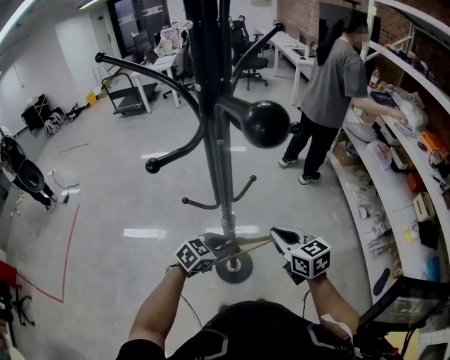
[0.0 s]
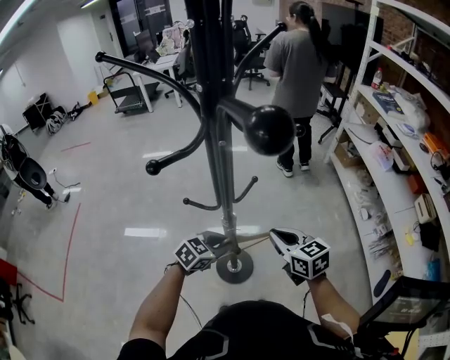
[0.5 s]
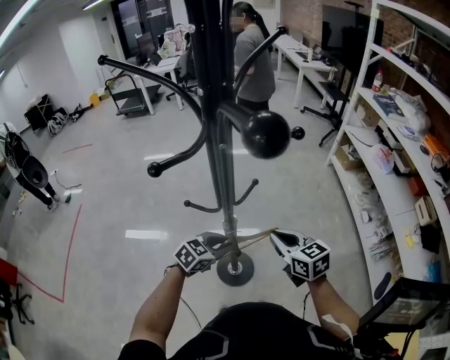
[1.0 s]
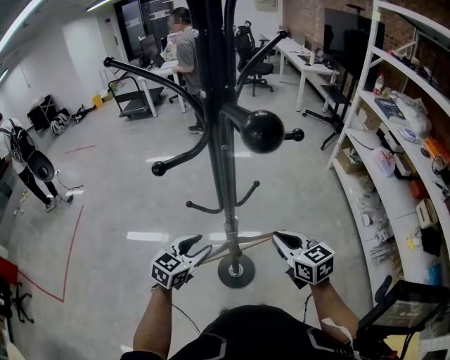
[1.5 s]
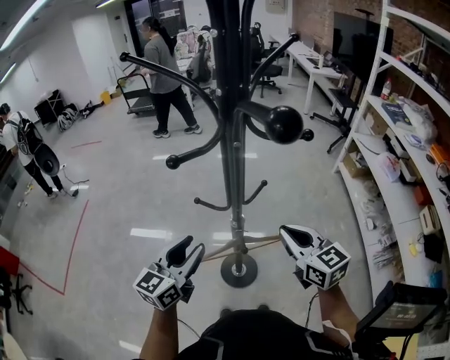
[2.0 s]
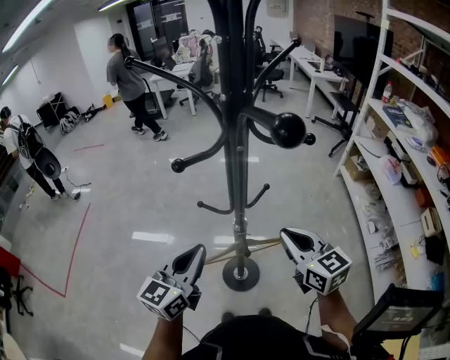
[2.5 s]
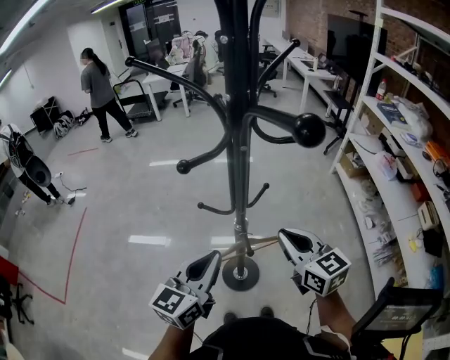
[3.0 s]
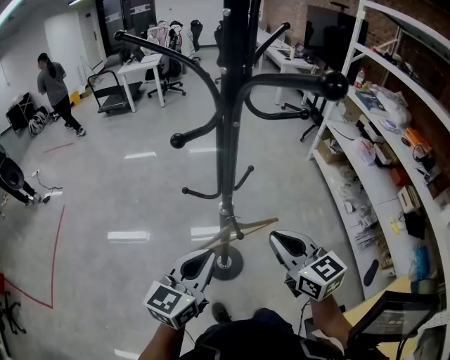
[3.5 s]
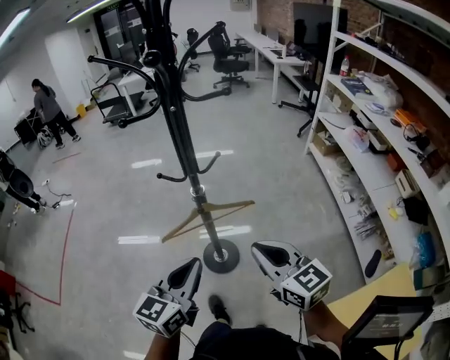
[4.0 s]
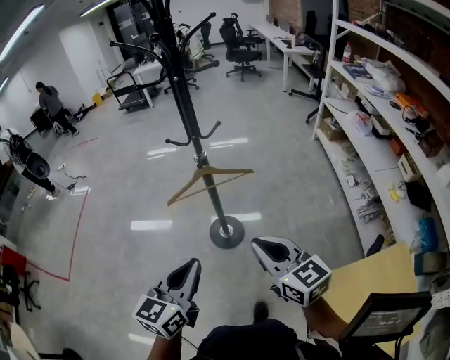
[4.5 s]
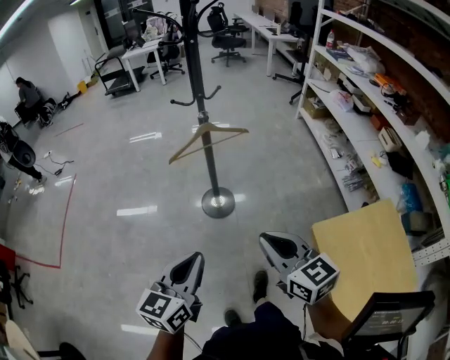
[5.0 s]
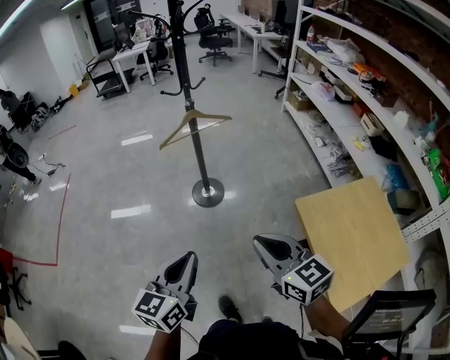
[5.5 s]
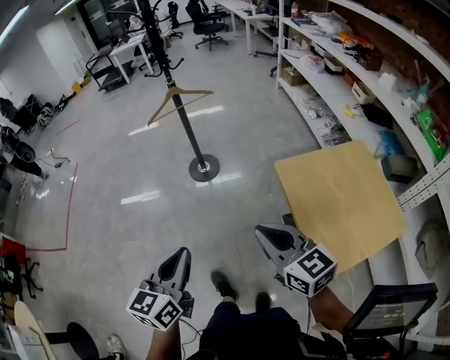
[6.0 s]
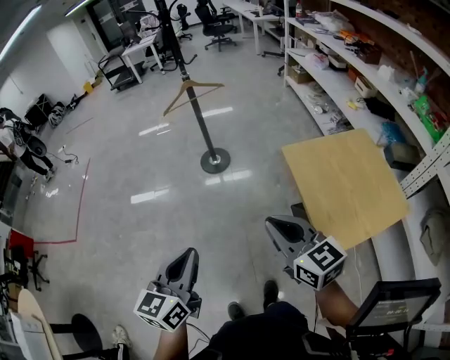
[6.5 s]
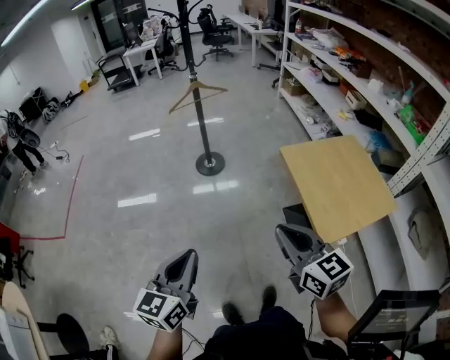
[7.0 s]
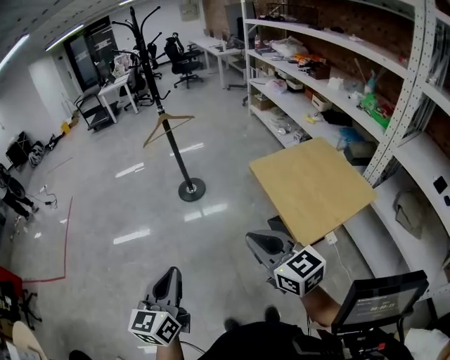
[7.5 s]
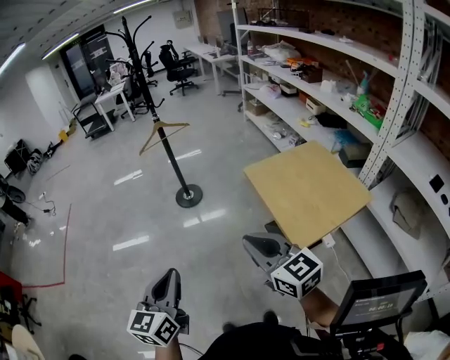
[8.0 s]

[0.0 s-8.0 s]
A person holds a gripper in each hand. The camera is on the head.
0.0 to 2.0 s: The left gripper goes some 20 cm upward and to the left, points its fingers roughly 30 degrees further upward, and opens its fingers. The right gripper goes approximately 10 cm upward.
2.0 to 4.0 s: The left gripper shifts some 20 cm backward and to the right, and closes; the right gripper goes some 15 cm backward.
4.0 to 6.0 s: Both grippers are carried backward, about 50 cm.
6.0 to 8.0 s: Both grippers move backward, about 20 cm.

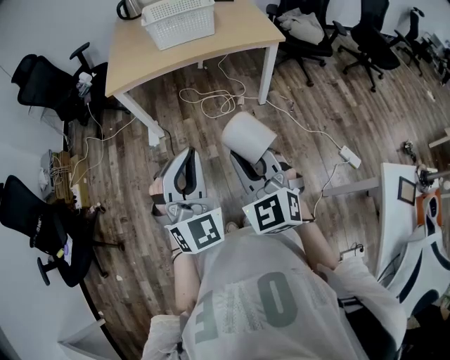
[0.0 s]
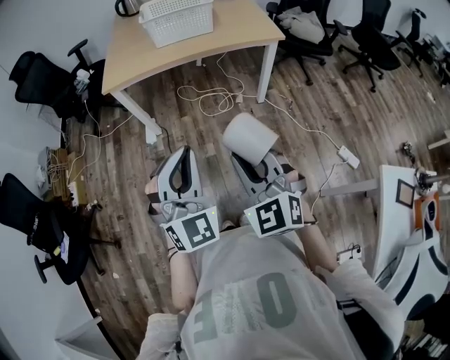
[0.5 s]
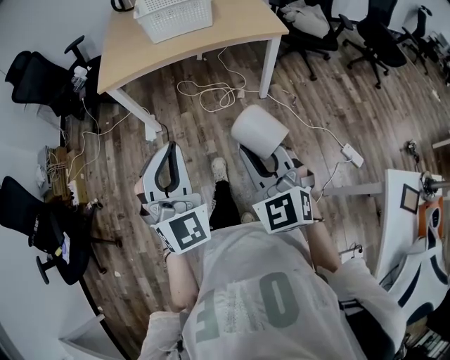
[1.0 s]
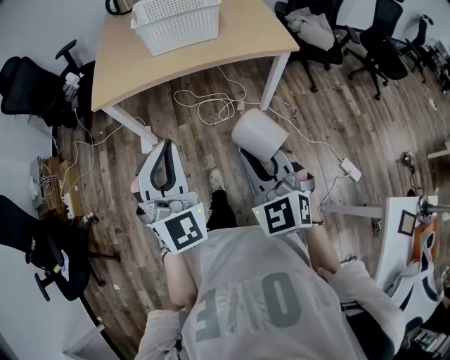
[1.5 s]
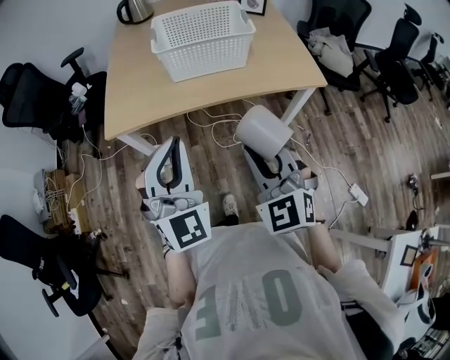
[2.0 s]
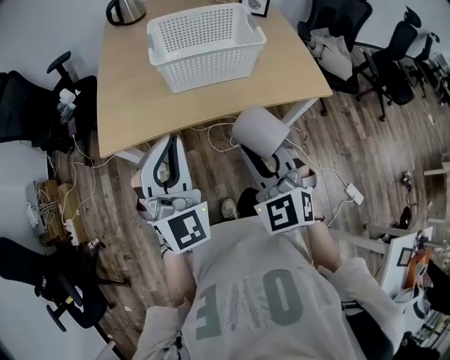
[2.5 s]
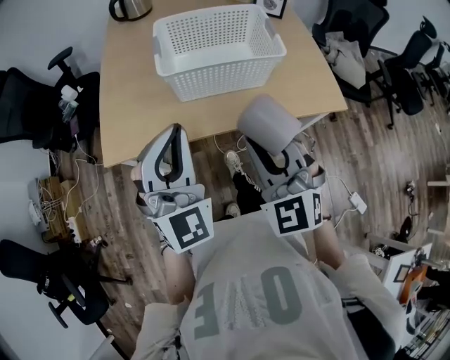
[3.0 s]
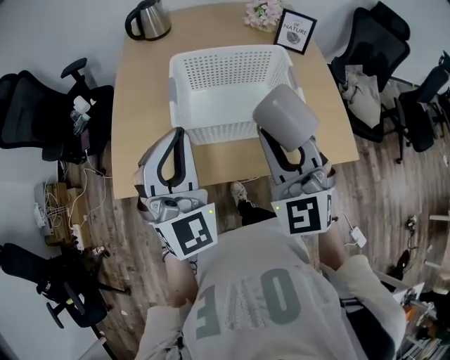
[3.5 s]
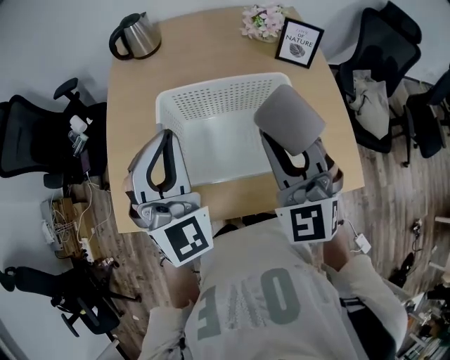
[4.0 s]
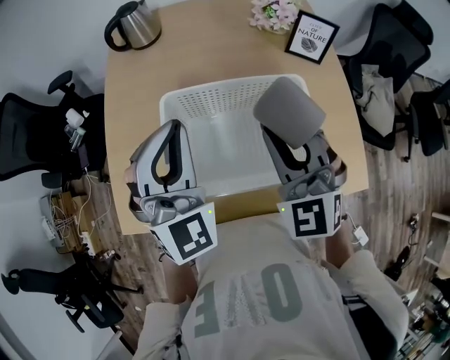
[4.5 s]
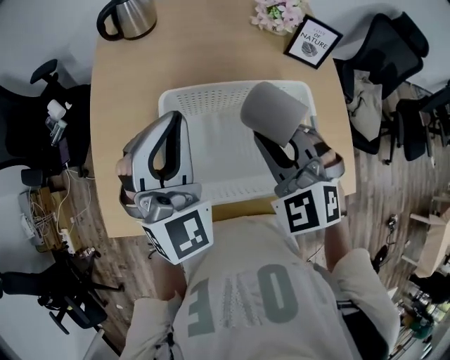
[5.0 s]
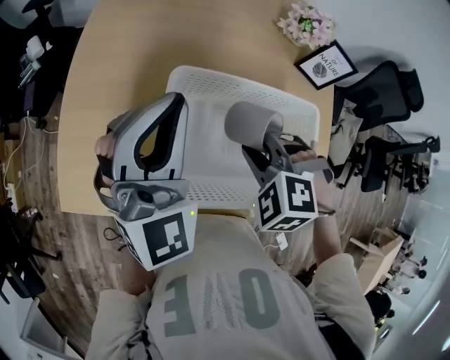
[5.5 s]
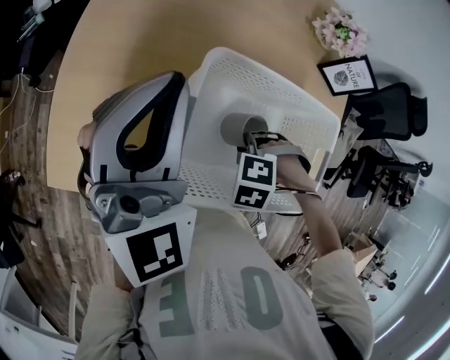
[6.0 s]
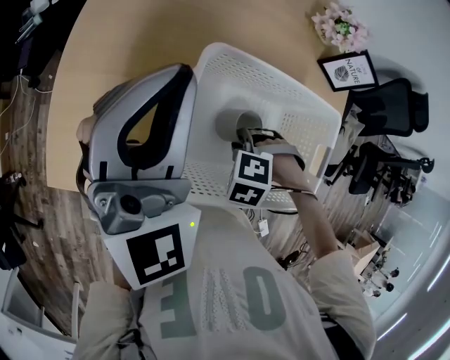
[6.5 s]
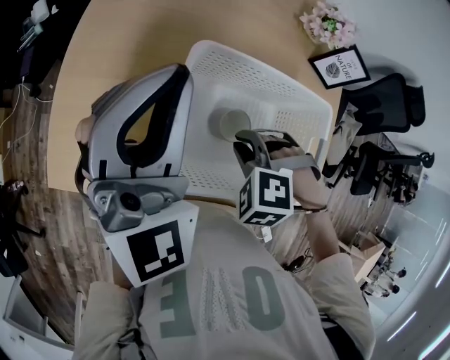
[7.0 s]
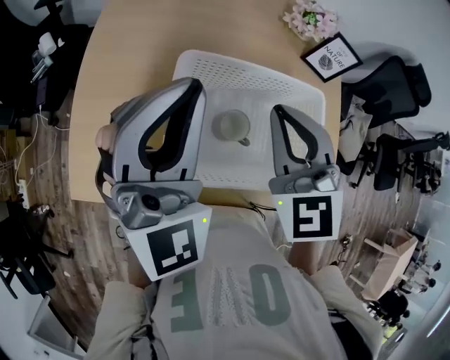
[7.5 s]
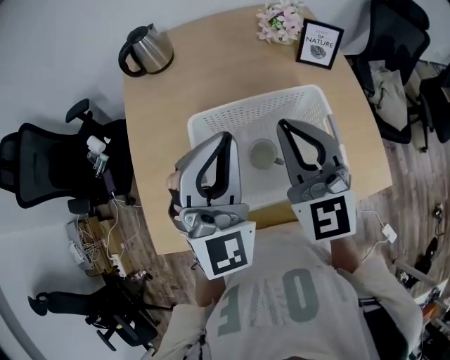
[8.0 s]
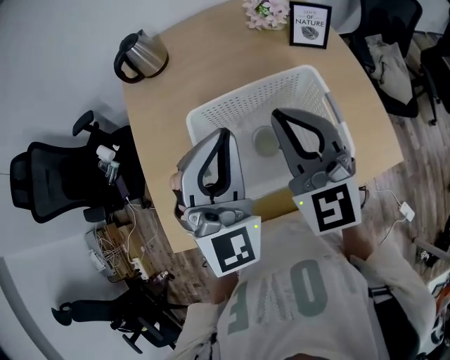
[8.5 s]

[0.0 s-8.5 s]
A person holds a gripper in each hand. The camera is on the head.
0.0 to 2.0 s: The grippers both shift forward by roughly 35 cm.
2.0 to 4.0 s: The pair of grippers is taken forward, approximately 50 cm.
4.0 to 6.5 s: The right gripper goes some 30 cm downward, and tilts its fingers roughly 70 degrees downward, while the left gripper changes place by about 15 cm.
6.5 to 8.5 s: The left gripper changes place by some 15 cm, and turns by roughly 20 degrees, while the right gripper shifts some 30 cm upward, and angles its fingers upward, by roughly 80 degrees.

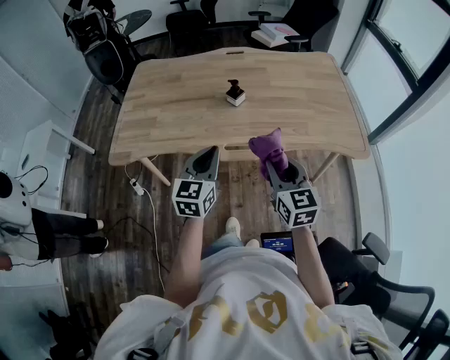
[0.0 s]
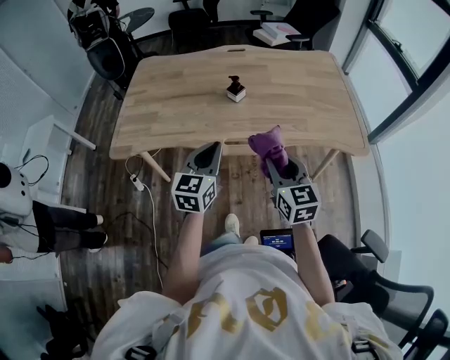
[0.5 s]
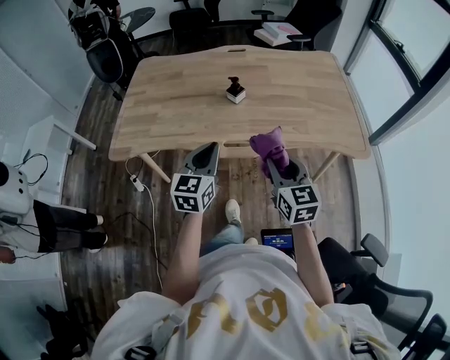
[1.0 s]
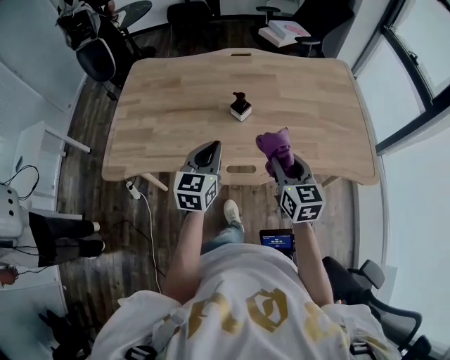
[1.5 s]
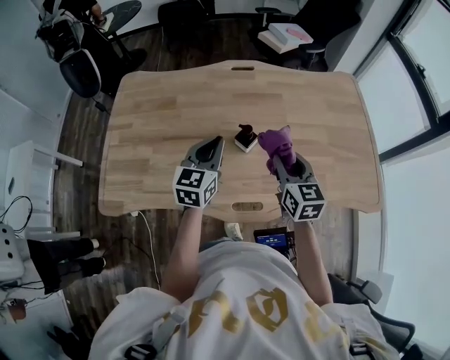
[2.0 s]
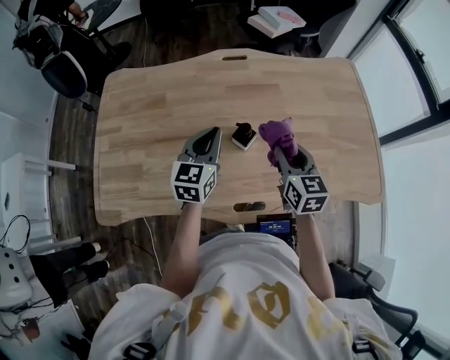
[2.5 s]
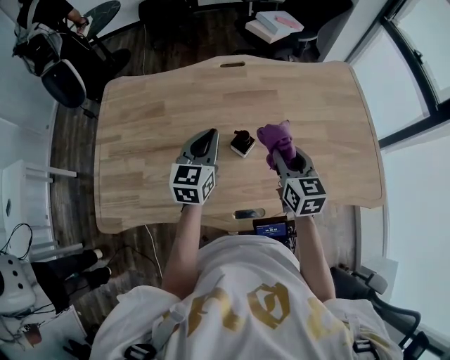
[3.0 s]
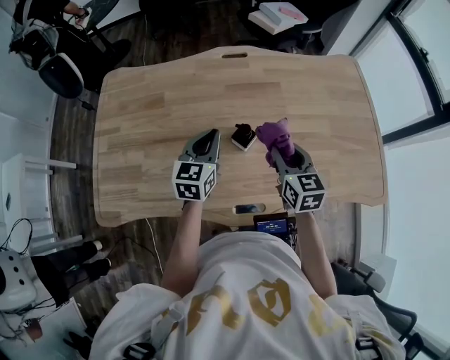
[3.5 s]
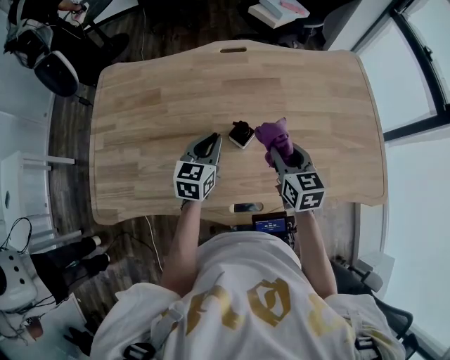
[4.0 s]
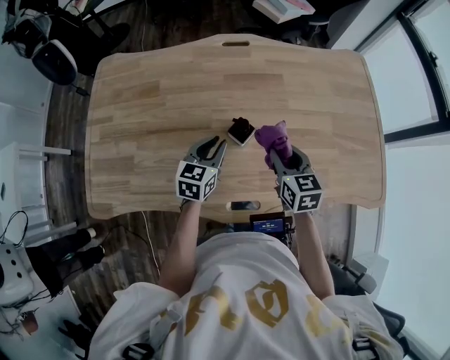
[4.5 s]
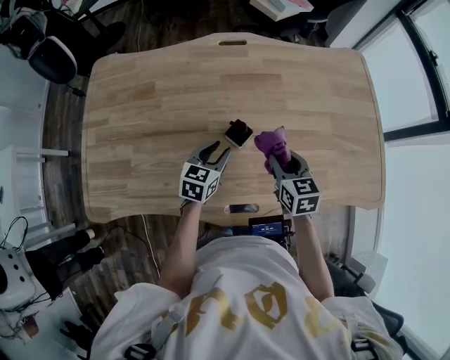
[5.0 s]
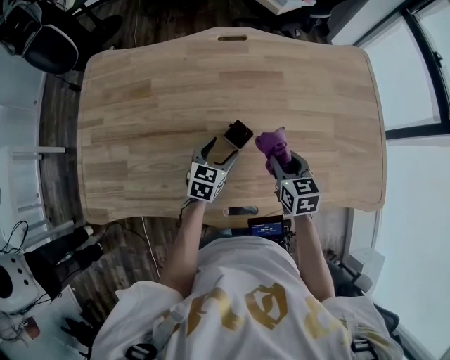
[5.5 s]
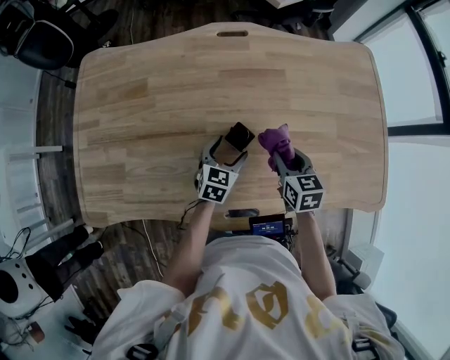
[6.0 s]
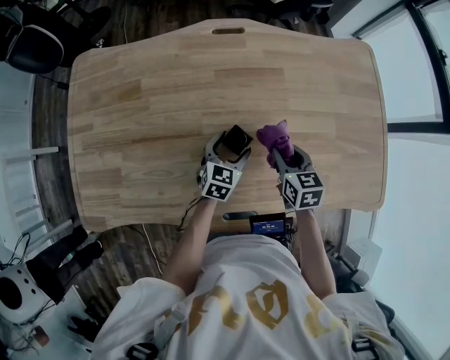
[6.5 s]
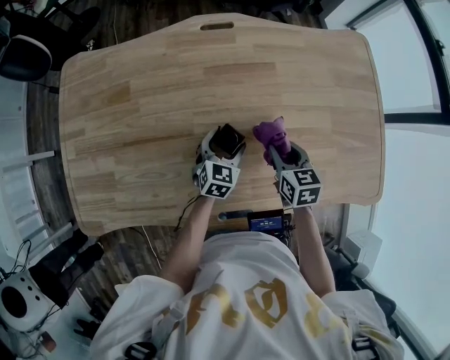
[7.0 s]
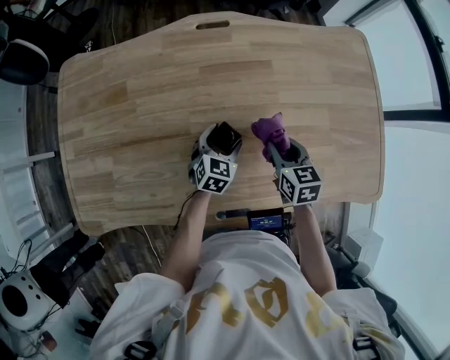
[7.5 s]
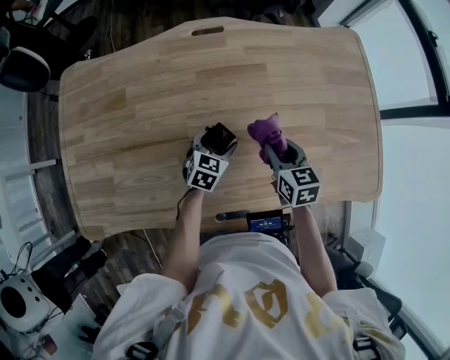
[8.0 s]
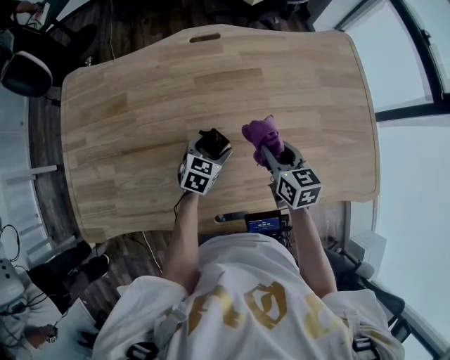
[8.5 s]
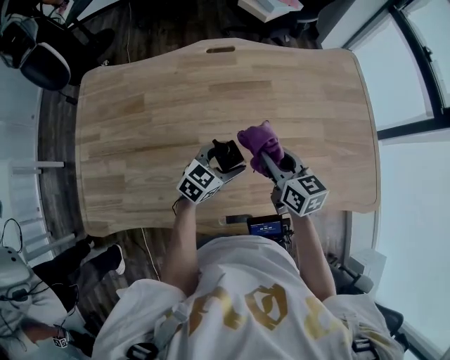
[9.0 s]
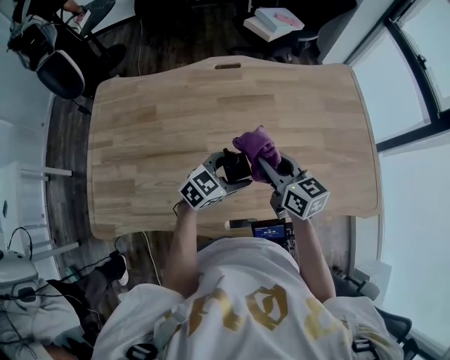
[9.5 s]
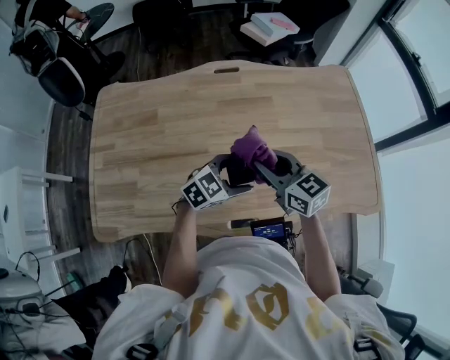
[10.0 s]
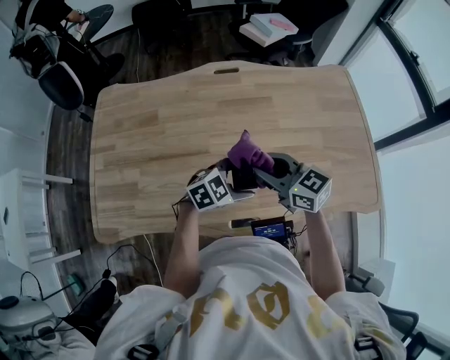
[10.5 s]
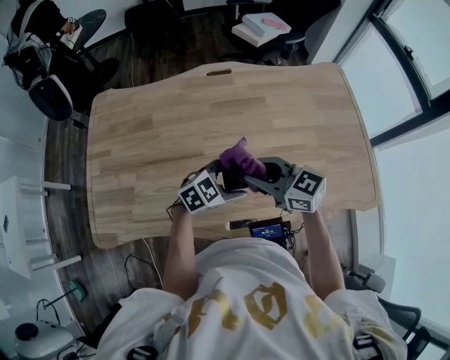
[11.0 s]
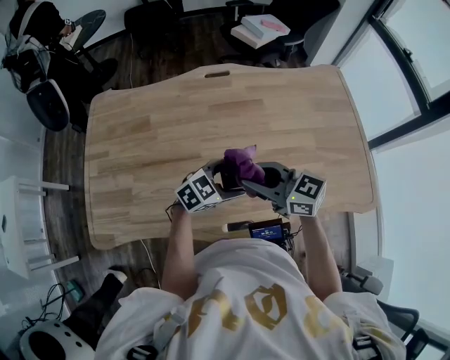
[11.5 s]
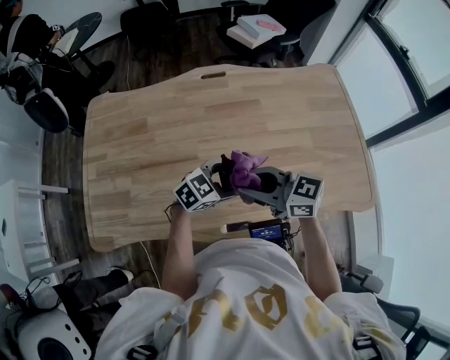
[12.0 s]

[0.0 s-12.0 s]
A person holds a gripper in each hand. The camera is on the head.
0.0 to 2.0 s: The grippers both shift forward by roughly 30 cm.
2.0 to 4.0 s: The two grippers go roughly 10 cm downward and forward.
4.0 to 6.0 s: The left gripper moves downward and to the right, about 15 cm, and opens its fingers. The right gripper heads downward, covering some 10 cm.
6.0 to 8.0 s: The grippers move only a little.
8.0 to 10.0 s: The left gripper travels upward and backward by approximately 20 cm, and rotates approximately 40 degrees, while the right gripper goes about 20 cm upward, to the left and backward, and changes its angle by some 30 degrees.
10.0 to 12.0 s: The right gripper changes place by roughly 5 cm, and swivels about 30 degrees.
